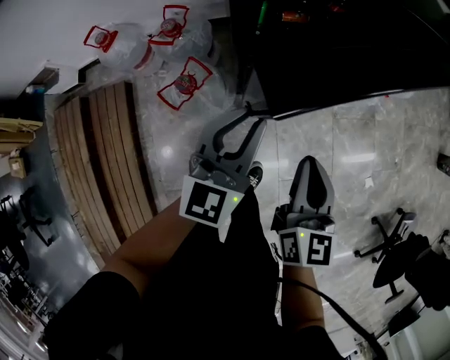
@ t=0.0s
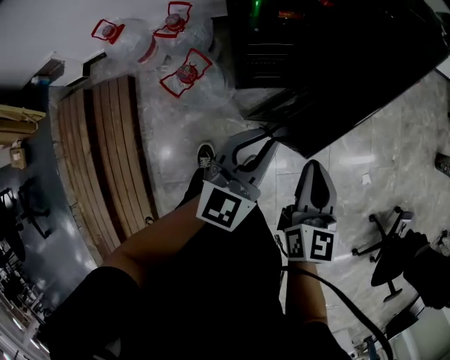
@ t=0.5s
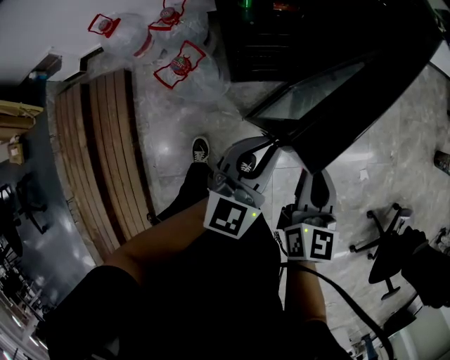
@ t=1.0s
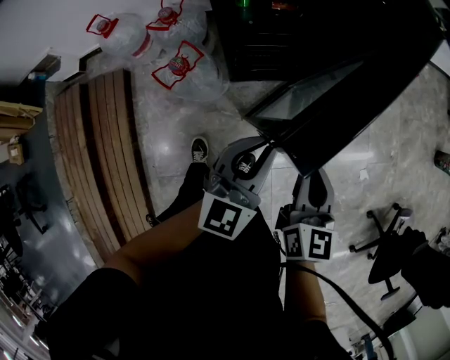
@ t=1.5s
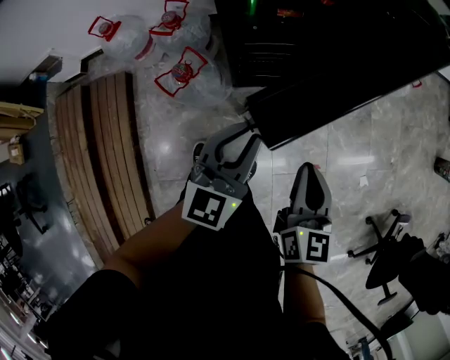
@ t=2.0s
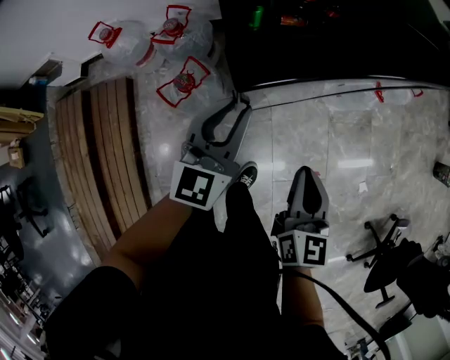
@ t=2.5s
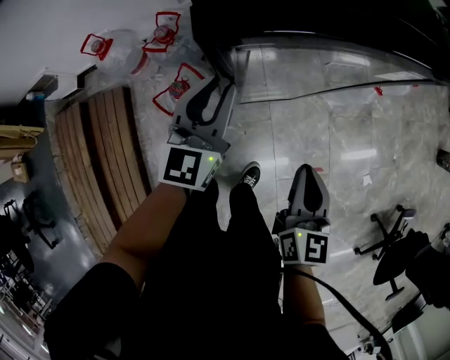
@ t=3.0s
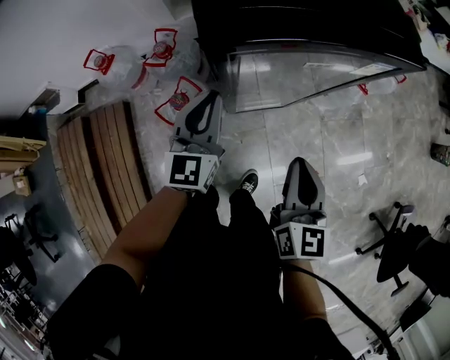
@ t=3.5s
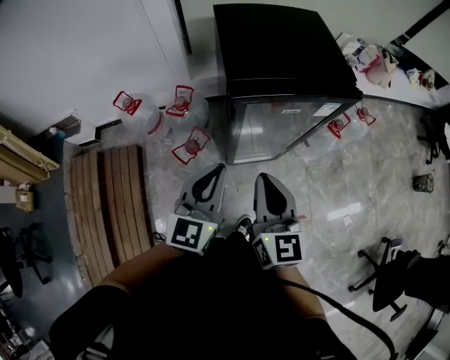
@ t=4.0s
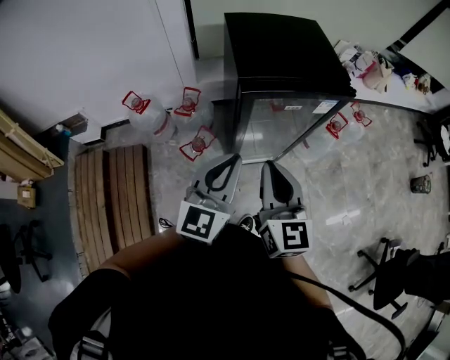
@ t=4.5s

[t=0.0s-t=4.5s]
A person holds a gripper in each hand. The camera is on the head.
t=0.0s to t=2.0s: The right gripper shifts some 5 cm to the right. Meanwhile the left gripper heads backward and to the right, covering some 10 cm.
t=2.0s to t=4.5s: The left gripper heads upward, covering roughly 25 cm. Meanwhile the right gripper shifts some 30 cm upward and to the left, and changes its angle by some 20 degrees.

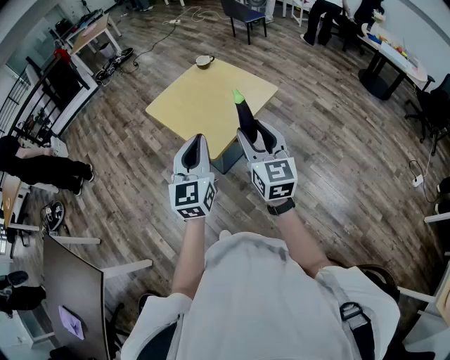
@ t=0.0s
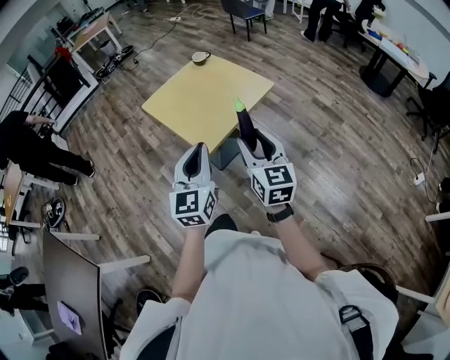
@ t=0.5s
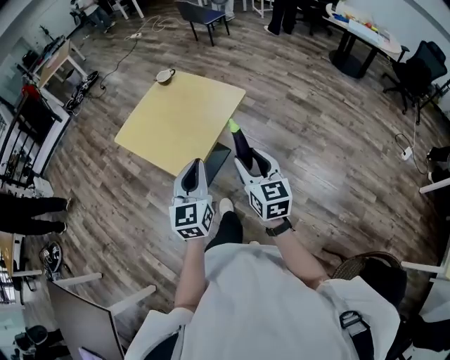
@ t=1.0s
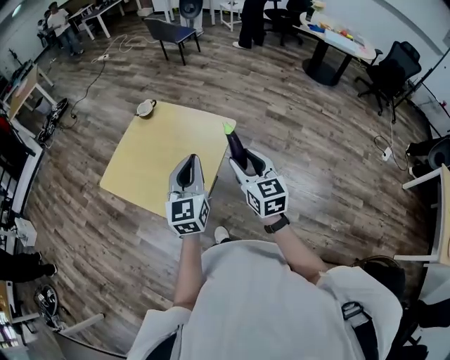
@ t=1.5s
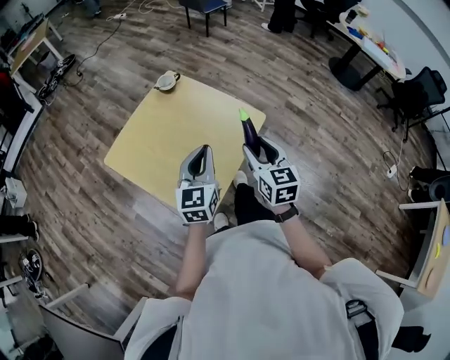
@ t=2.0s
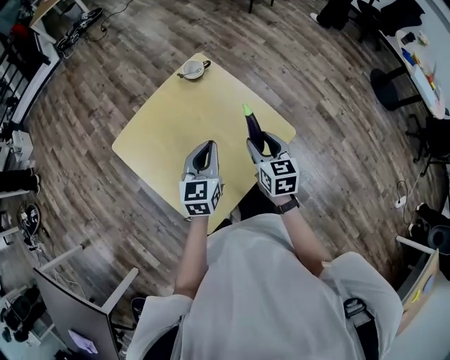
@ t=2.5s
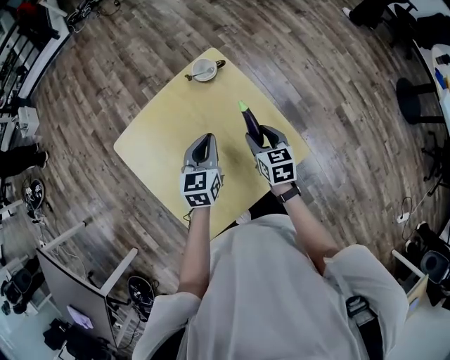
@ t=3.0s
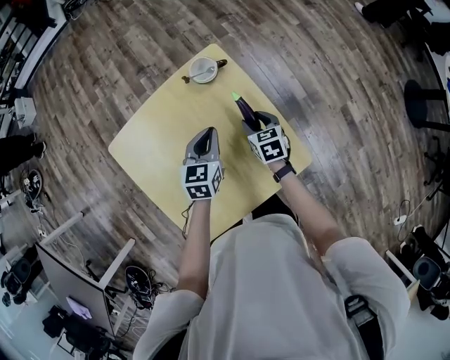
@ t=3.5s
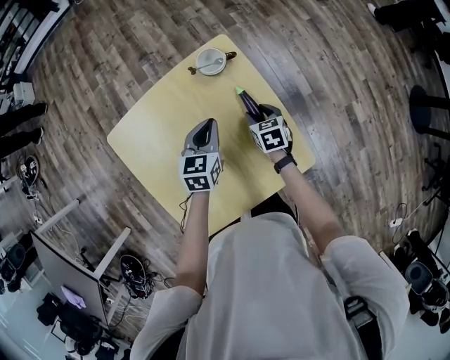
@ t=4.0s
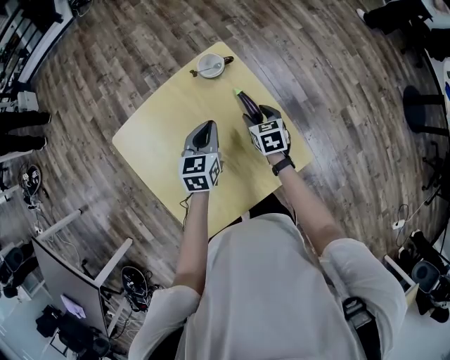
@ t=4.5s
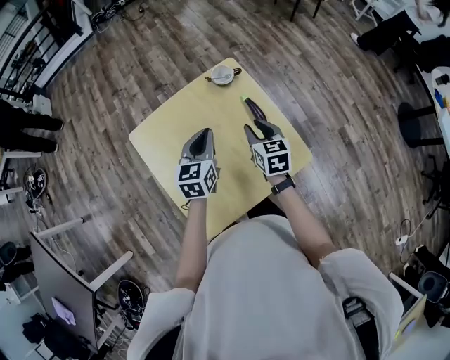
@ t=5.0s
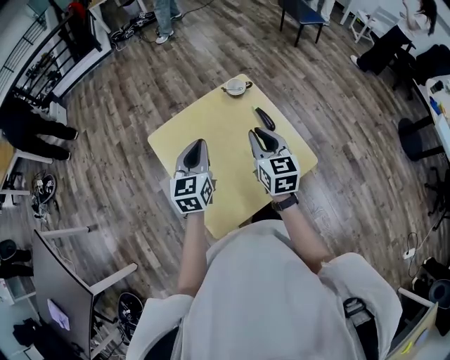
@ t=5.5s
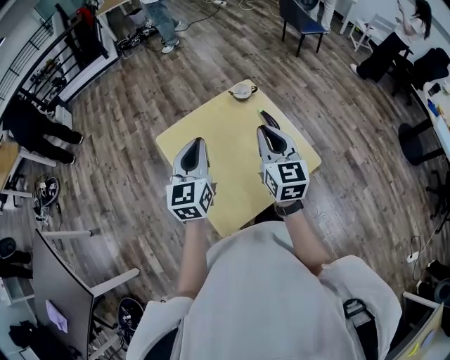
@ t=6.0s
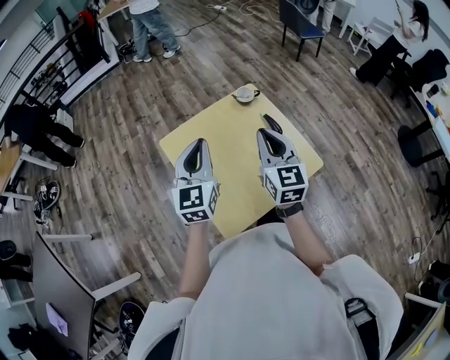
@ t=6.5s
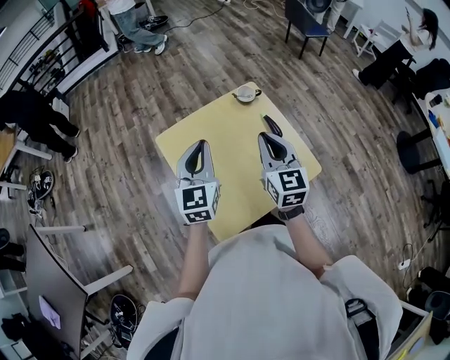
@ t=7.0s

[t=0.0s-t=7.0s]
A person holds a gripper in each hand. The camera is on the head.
t=0.0s to t=2.0s: The left gripper travels forward by roughly 35 cm, and changes its angle by about 20 degrees. The right gripper is displaced forward and downward by approximately 35 cm, and turns by about 20 degrees.
t=2.0s to t=3.5s: The right gripper changes place by some 40 cm, and swivels some 40 degrees. The left gripper shifts by about 35 cm, and rotates some 30 degrees.
t=3.5s to t=5.0s: The left gripper is displaced upward, to the left and backward by about 15 cm. Meanwhile the right gripper is displaced upward and backward by some 15 cm.
t=5.0s to t=7.0s: The right gripper heads upward, backward and to the left, covering about 20 cm, changes its angle by about 30 degrees, and closes its fingers, while the left gripper goes some 20 cm upward, to the left and backward, and turns by about 20 degrees.

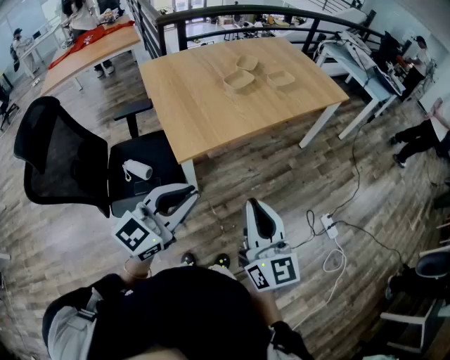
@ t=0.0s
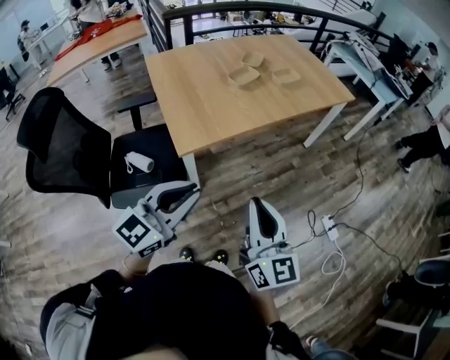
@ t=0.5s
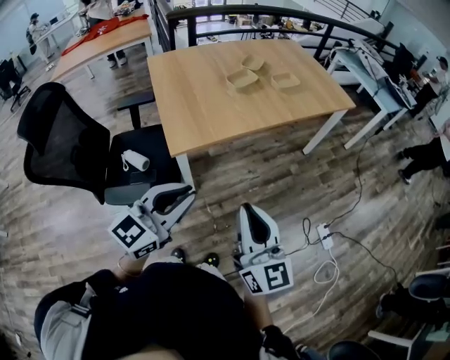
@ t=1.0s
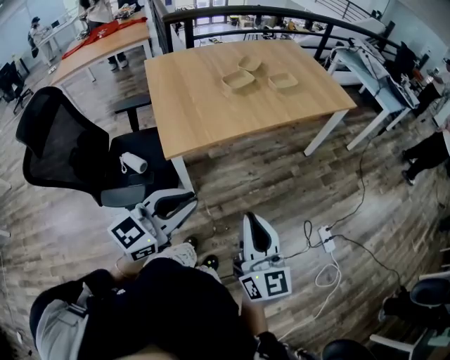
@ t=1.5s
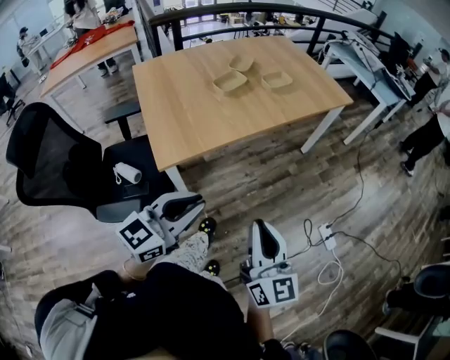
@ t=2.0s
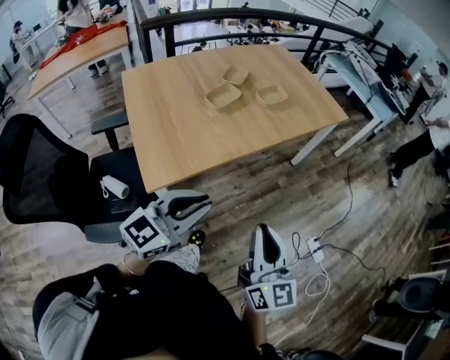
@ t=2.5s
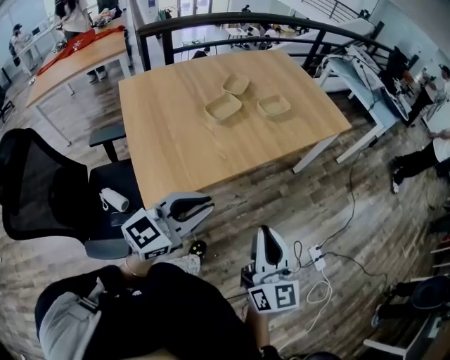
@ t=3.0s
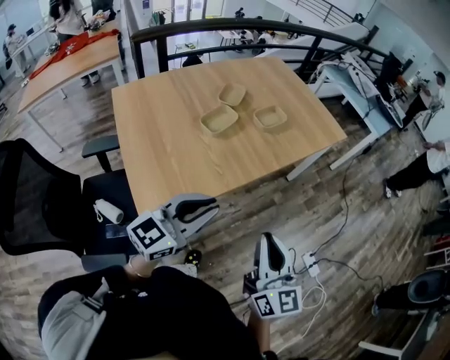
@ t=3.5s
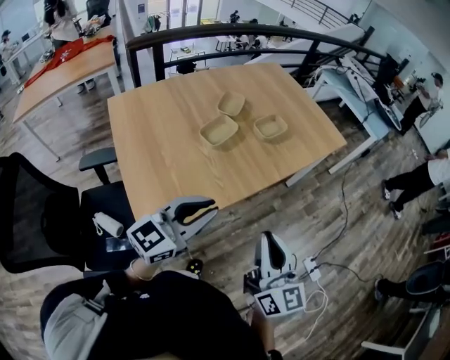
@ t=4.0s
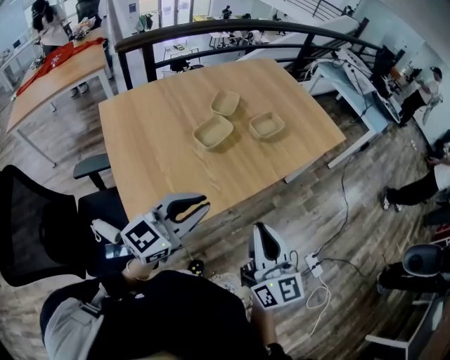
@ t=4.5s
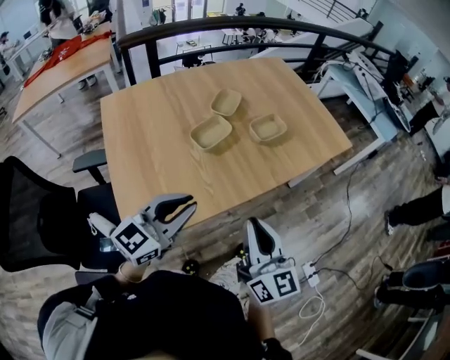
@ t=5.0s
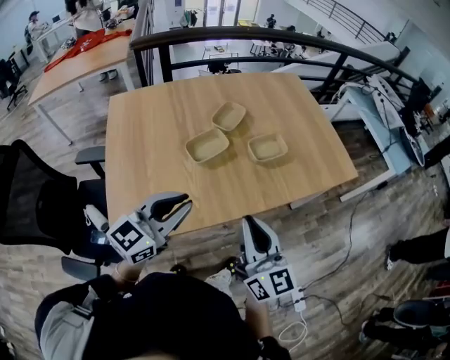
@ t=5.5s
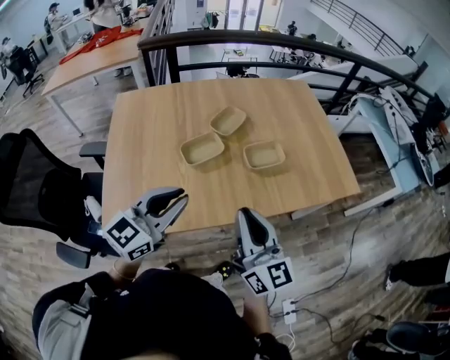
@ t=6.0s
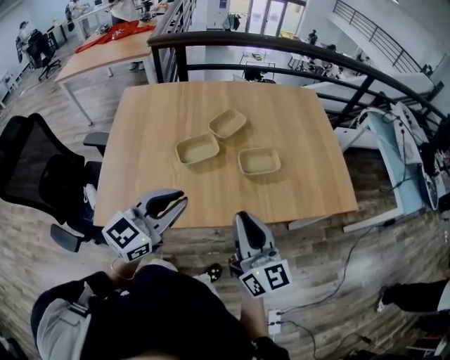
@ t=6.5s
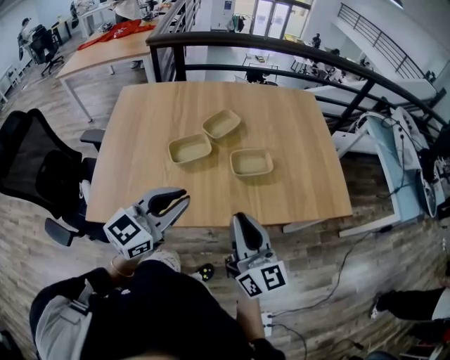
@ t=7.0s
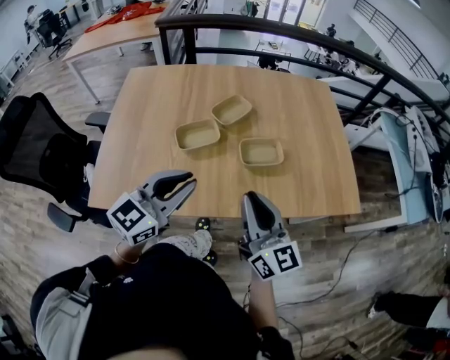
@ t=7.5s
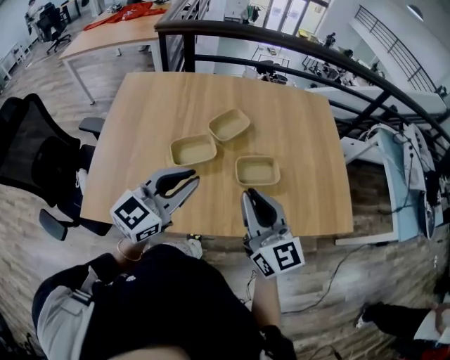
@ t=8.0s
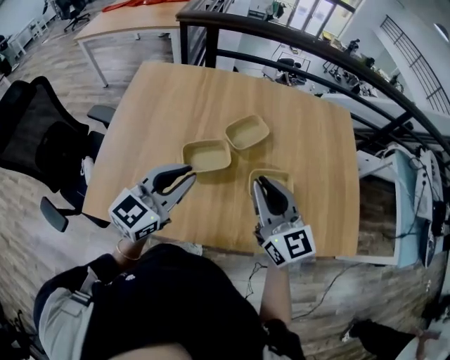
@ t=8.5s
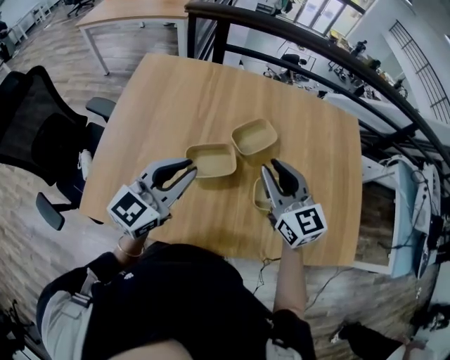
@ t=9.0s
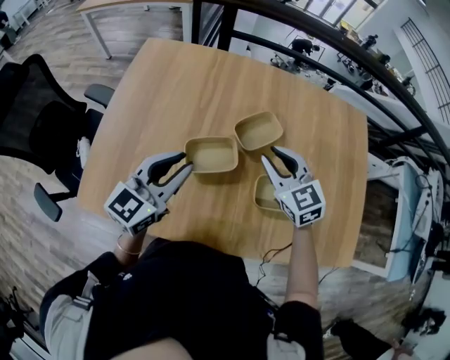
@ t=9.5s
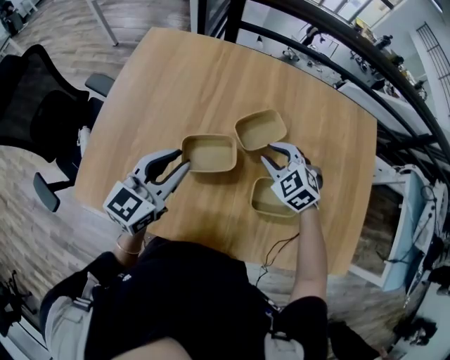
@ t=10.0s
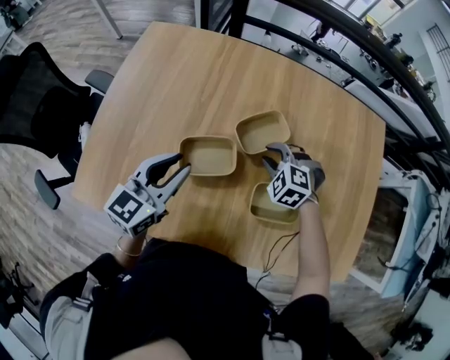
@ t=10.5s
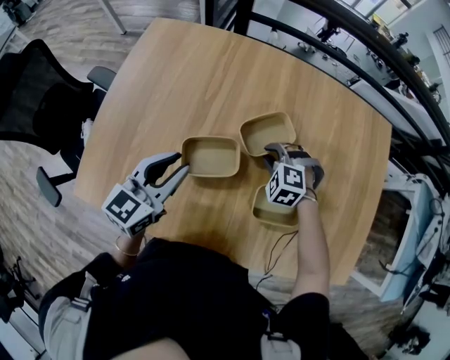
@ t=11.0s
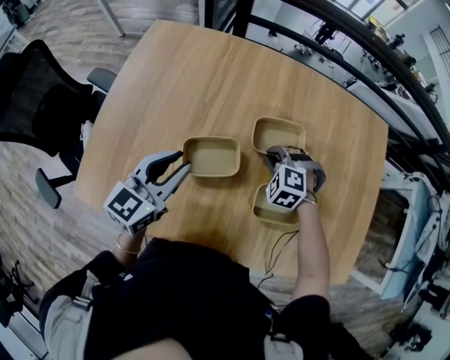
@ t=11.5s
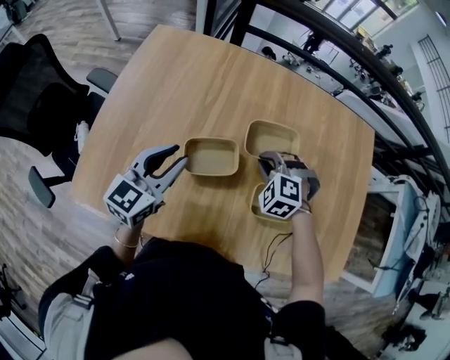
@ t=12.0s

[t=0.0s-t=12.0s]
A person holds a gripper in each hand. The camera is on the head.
t=0.0s to t=2.0s: Both grippers travel together to the right and forward, some 10 cm.
t=2.0s to t=4.0s: Both grippers move forward, approximately 25 cm.
t=4.0s to t=6.0s: The left gripper moves some 20 cm, and rotates approximately 30 degrees, while the right gripper shifts by approximately 25 cm, and turns by about 30 degrees.
t=6.0s to t=8.0s: Both grippers travel together forward and to the right, roughly 15 cm.
t=8.0s to t=10.0s: The right gripper shifts approximately 30 cm forward and downward, and points its fingers approximately 50 degrees further downward. The left gripper moves forward, to the left and downward, approximately 20 cm, and changes its angle by roughly 30 degrees.
t=10.0s to t=12.0s: The right gripper travels downward and back again, some 10 cm each way, rotates approximately 30 degrees, and closes.

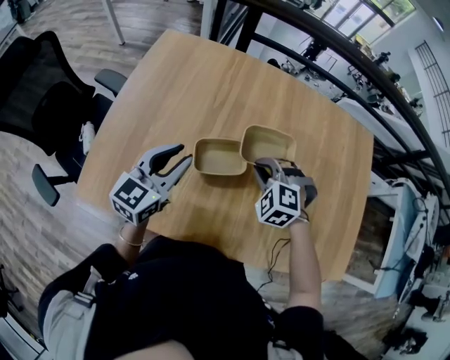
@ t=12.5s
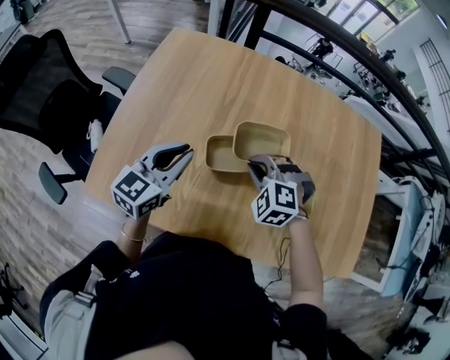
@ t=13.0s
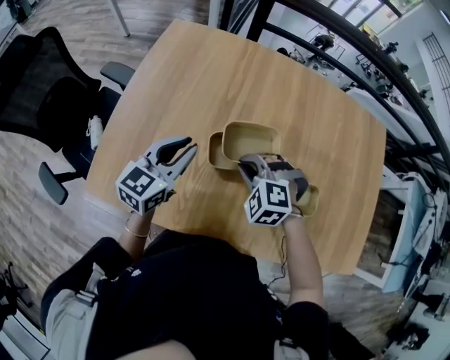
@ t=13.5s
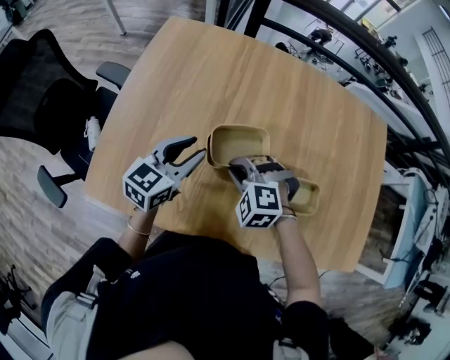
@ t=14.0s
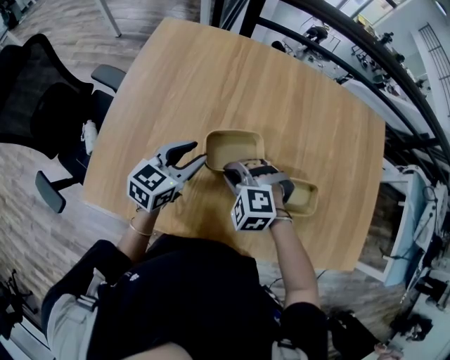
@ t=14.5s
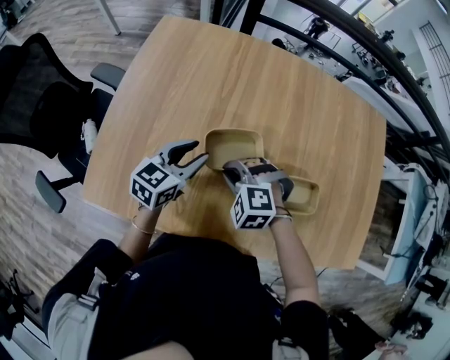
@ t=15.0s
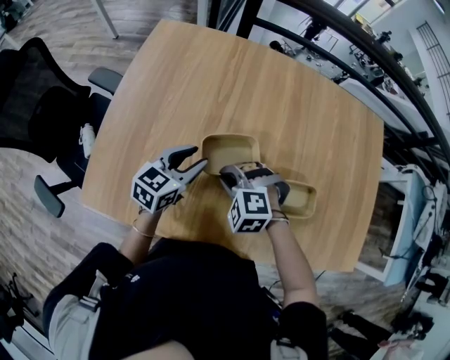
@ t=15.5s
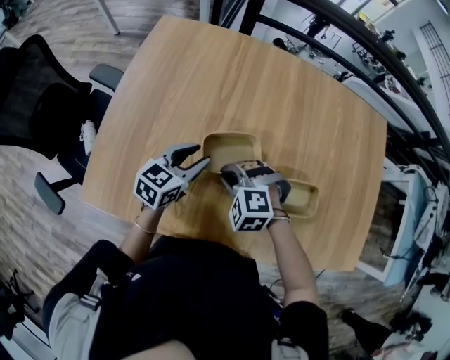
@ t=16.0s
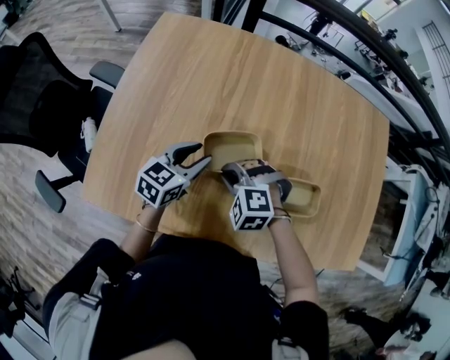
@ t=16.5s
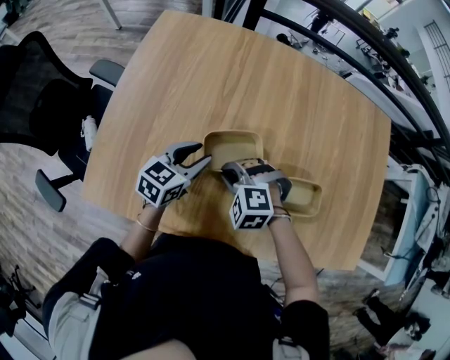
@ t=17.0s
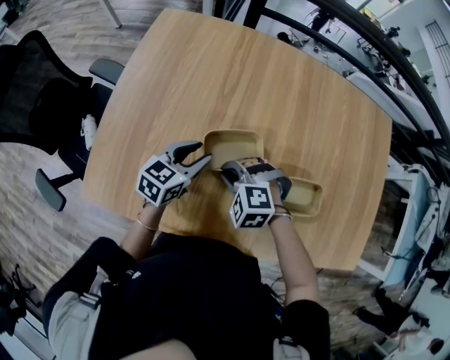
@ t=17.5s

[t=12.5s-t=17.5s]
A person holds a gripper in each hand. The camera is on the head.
t=12.5s to t=15.0s: The right gripper heads to the left, covering approximately 10 cm, while the left gripper shifts about 10 cm downward.
t=15.0s to t=17.5s: The grippers move only a little.
